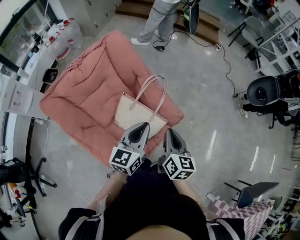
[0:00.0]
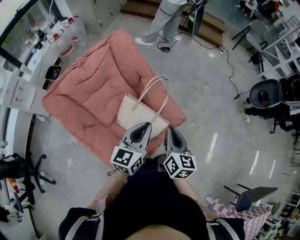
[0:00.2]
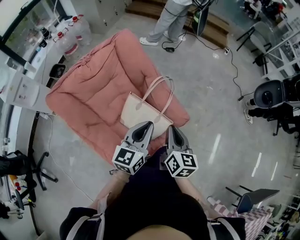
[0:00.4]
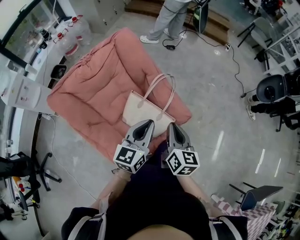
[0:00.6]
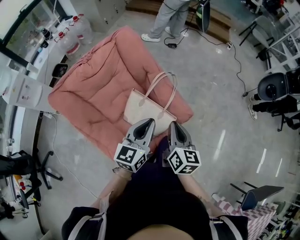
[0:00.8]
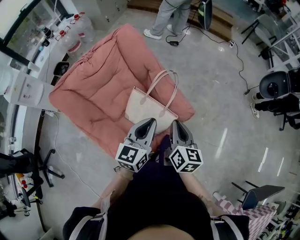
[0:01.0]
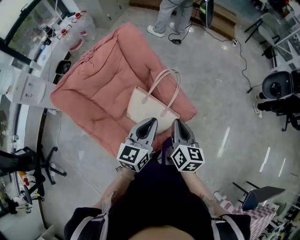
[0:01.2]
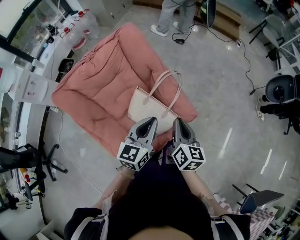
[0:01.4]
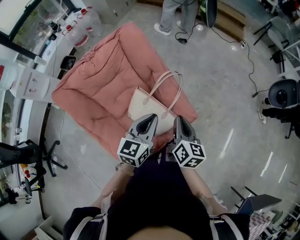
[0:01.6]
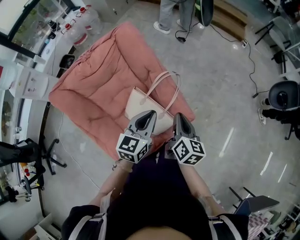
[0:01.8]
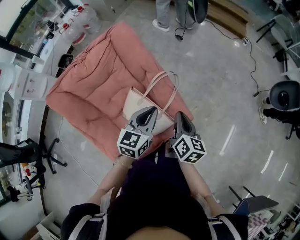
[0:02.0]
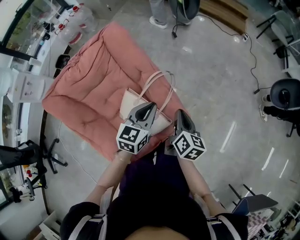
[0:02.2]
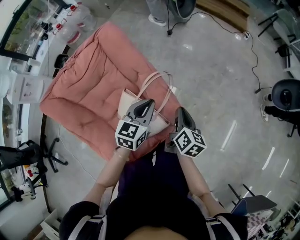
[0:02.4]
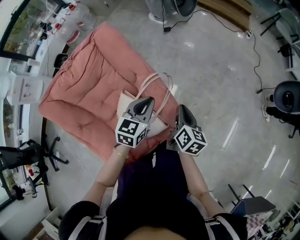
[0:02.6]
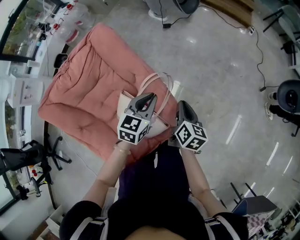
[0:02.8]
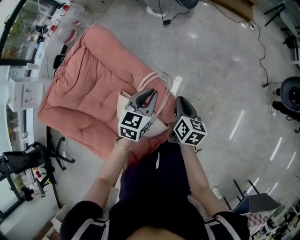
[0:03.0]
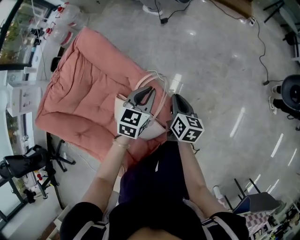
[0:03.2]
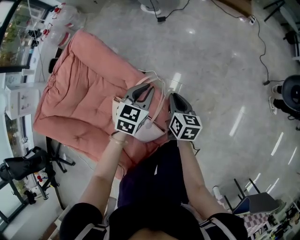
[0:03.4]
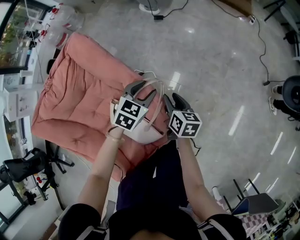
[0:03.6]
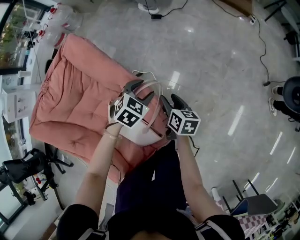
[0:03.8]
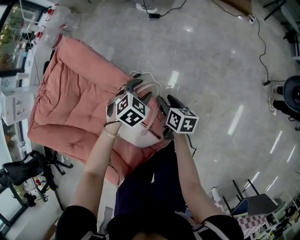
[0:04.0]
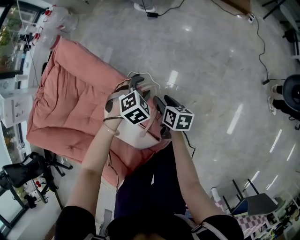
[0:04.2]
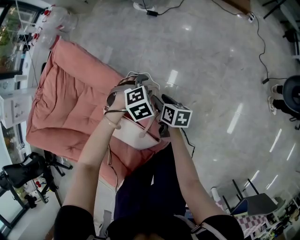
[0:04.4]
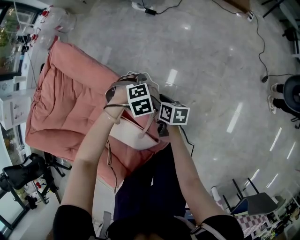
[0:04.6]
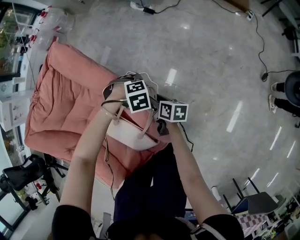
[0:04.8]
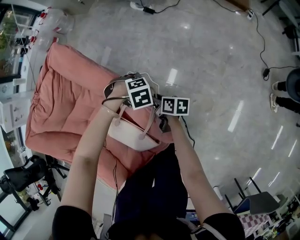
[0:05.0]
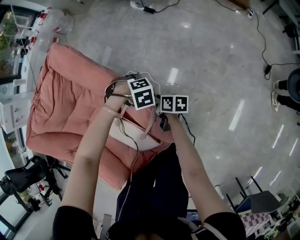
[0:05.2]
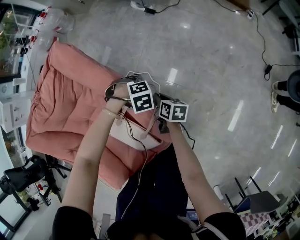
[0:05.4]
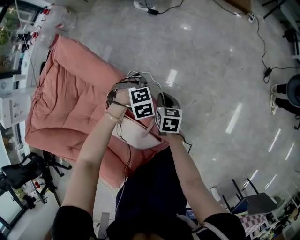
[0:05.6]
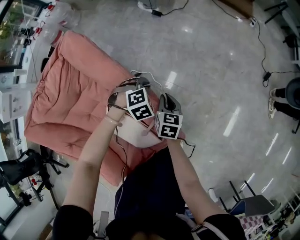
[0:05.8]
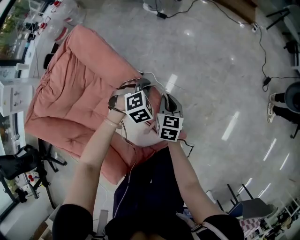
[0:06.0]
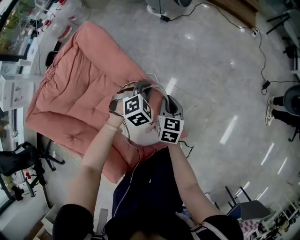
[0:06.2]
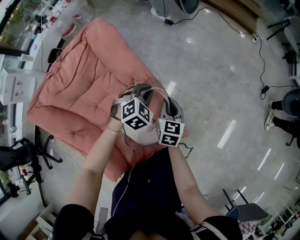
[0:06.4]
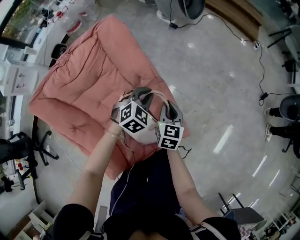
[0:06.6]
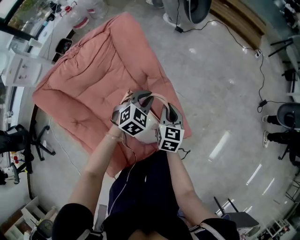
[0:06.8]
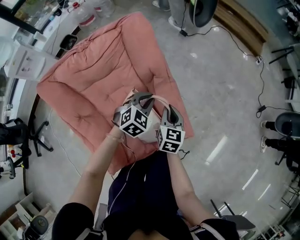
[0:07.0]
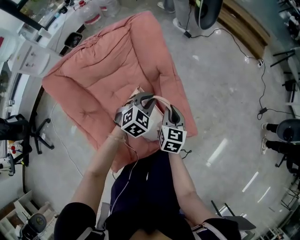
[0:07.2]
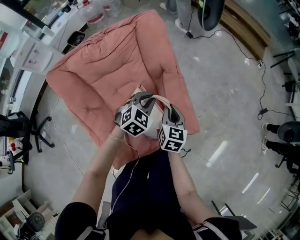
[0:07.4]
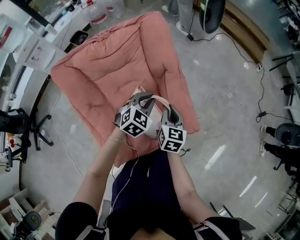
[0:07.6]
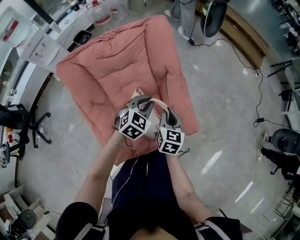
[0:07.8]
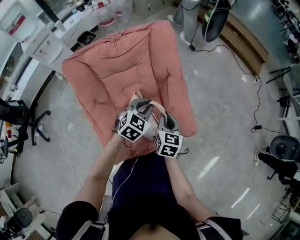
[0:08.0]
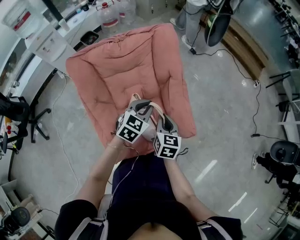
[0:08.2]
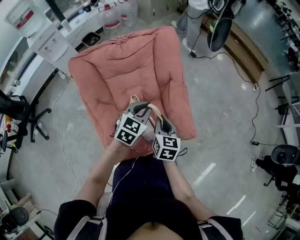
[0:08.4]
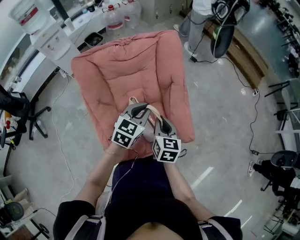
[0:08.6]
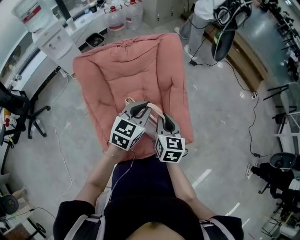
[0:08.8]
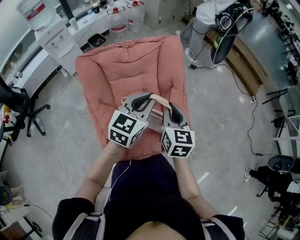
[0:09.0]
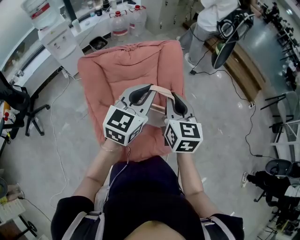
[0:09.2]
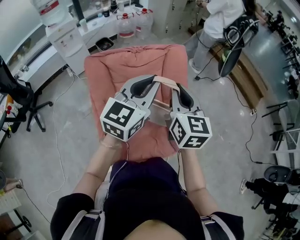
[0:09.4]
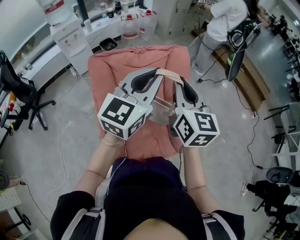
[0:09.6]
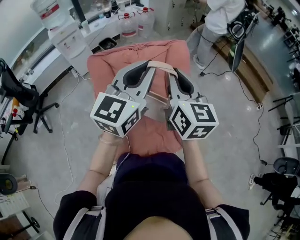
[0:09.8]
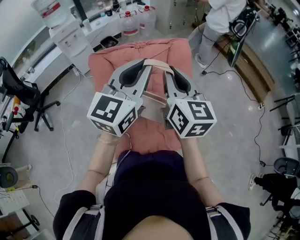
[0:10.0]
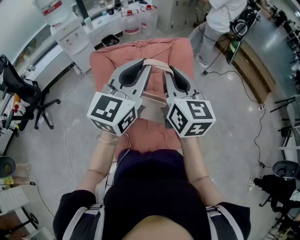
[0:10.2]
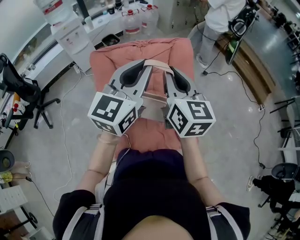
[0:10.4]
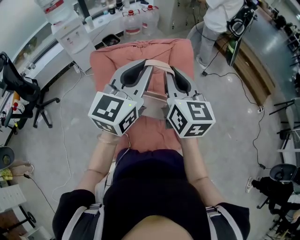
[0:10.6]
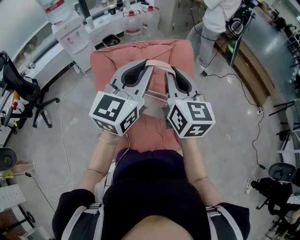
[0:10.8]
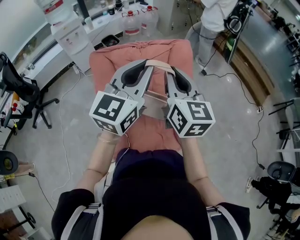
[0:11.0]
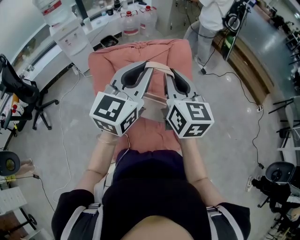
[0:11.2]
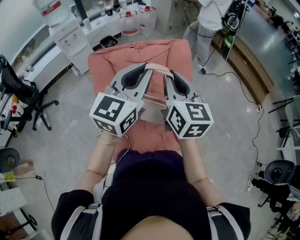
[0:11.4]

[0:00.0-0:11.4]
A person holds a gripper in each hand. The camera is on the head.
0.0 to 1.4 s: The right gripper shifts some 5 cm forward.
1.4 to 2.8 s: The right gripper is displaced forward, downward and to the right by approximately 25 cm. The left gripper is displaced forward and downward by approximately 25 cm.
2.8 to 4.2 s: The two grippers go approximately 20 cm downward and forward. The left gripper angles its fingers downward, by roughly 40 degrees, and opens, while the right gripper turns by approximately 20 degrees, and opens its fingers.
4.2 to 5.6 s: The right gripper changes its angle by roughly 20 degrees, and closes up; the left gripper moves roughly 5 cm, rotates approximately 20 degrees, and closes.
5.6 to 7.2 s: The left gripper changes place by about 25 cm, and angles its fingers upward, by about 40 degrees. The right gripper shifts by roughly 25 cm, and turns by some 20 degrees.
7.2 to 8.6 s: The left gripper moves upward, backward and to the left, roughly 20 cm, and turns by approximately 30 degrees. Meanwhile the right gripper shifts about 20 cm backward, upward and to the left.
8.6 to 10.0 s: Both grippers travel together upward, some 25 cm. The right gripper turns by roughly 30 degrees. Meanwhile the left gripper points its fingers about 30 degrees further upward.
10.0 to 11.4 s: The grippers move only a little.

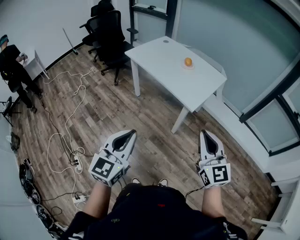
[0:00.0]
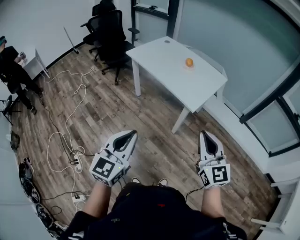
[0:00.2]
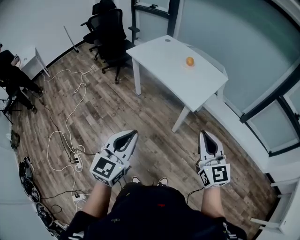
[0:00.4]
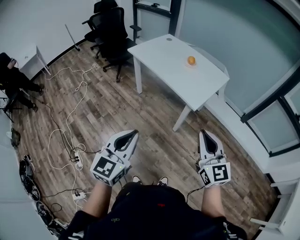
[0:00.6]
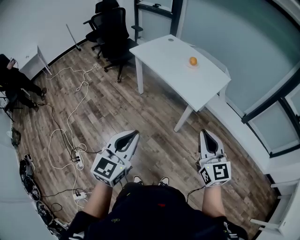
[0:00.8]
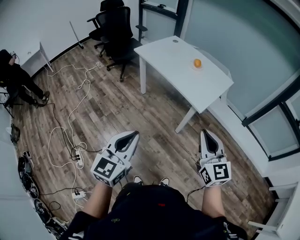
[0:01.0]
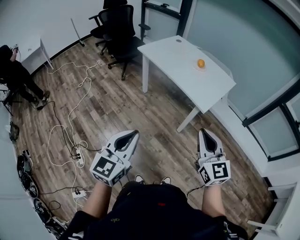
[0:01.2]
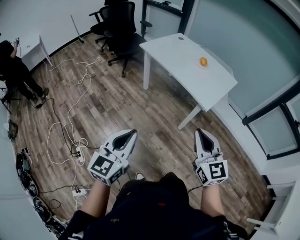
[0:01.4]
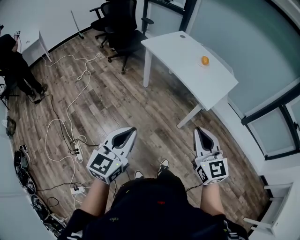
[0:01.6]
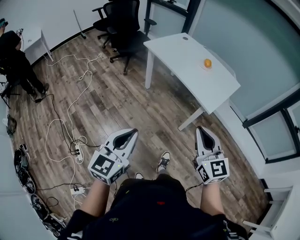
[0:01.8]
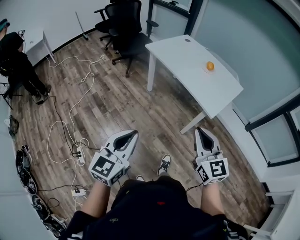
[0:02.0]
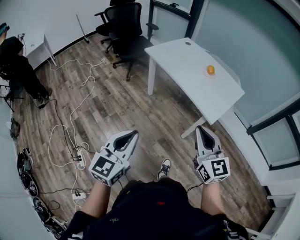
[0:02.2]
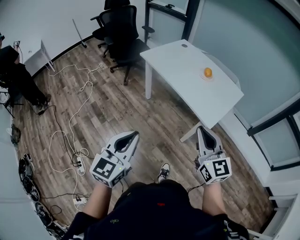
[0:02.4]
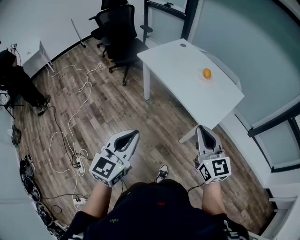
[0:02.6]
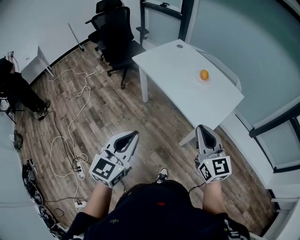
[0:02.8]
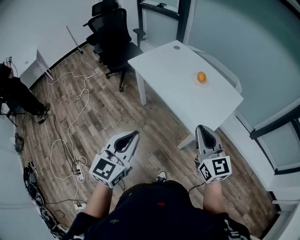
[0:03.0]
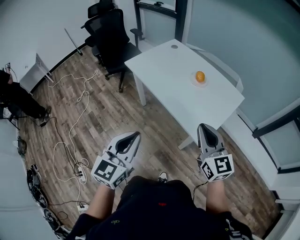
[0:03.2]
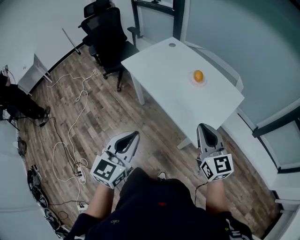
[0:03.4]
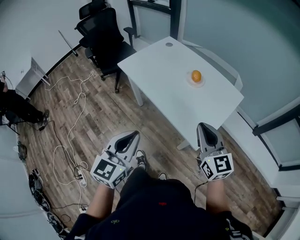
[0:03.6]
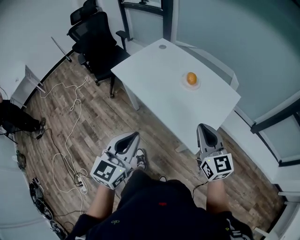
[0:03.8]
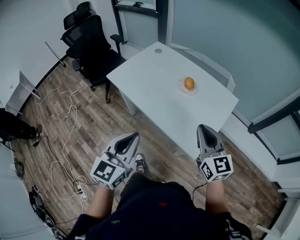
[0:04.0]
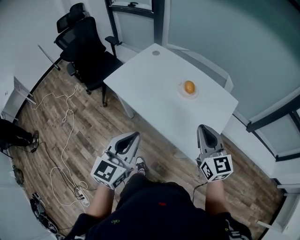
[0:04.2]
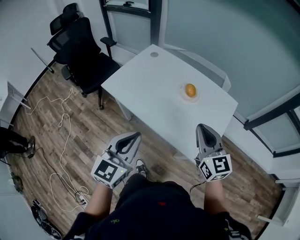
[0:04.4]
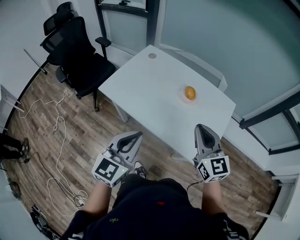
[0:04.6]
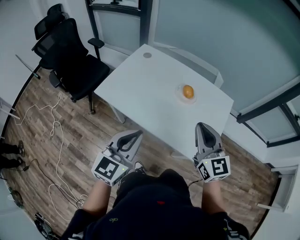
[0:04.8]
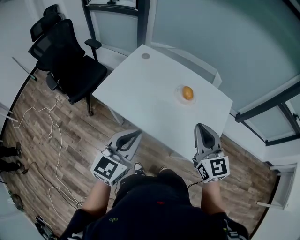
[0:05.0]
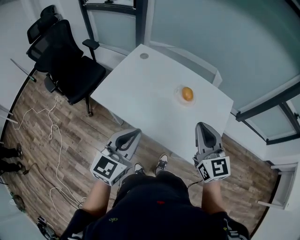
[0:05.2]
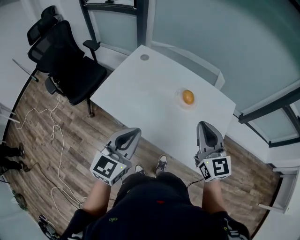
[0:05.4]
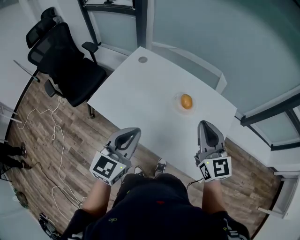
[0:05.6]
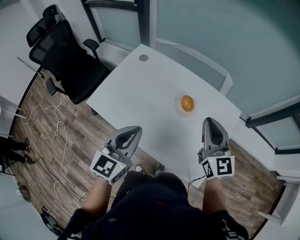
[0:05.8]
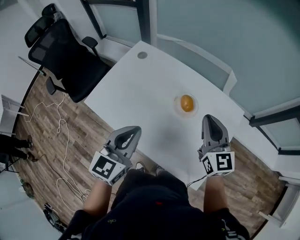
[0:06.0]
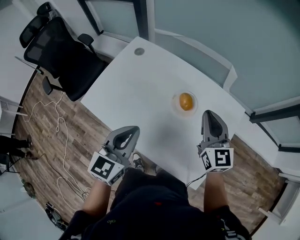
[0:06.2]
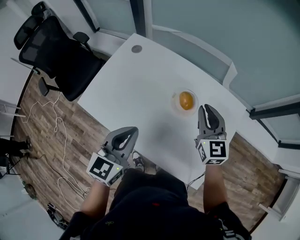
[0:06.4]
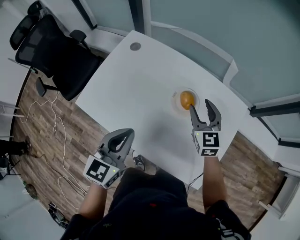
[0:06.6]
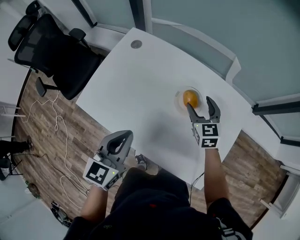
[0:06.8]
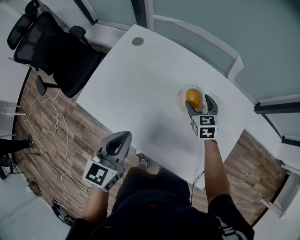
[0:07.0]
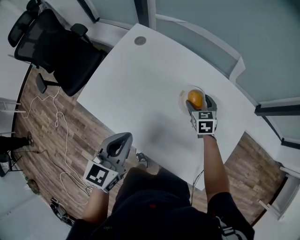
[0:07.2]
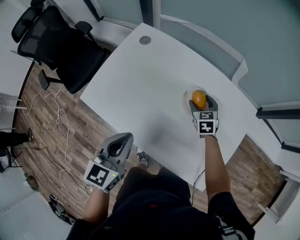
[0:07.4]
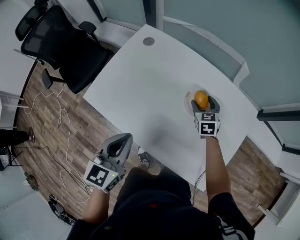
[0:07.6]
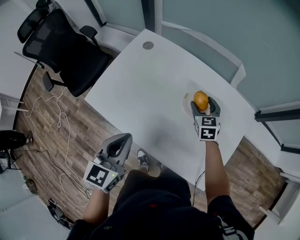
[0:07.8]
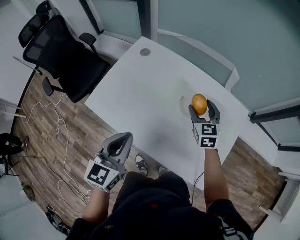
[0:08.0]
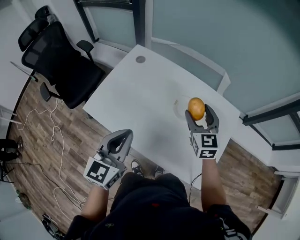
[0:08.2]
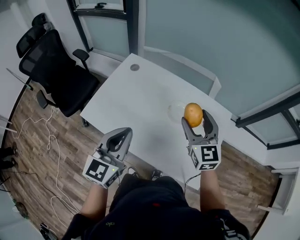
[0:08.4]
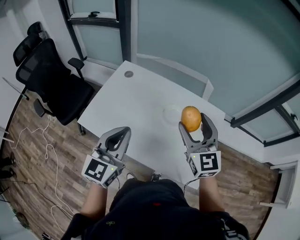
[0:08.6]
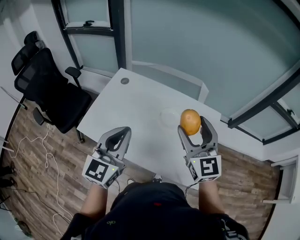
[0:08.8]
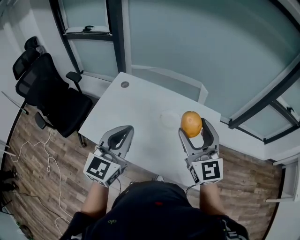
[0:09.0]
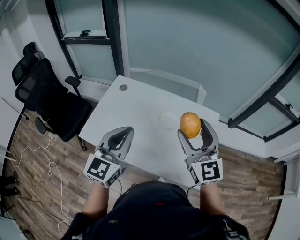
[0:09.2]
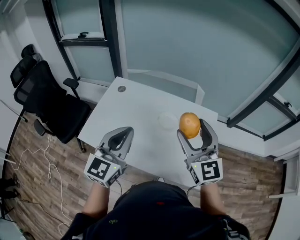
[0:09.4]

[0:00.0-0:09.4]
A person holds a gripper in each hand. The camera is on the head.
0.0 to 1.6 s: The grippers both shift to the left by some 15 cm.
1.6 to 3.2 s: The two grippers go roughly 35 cm forward and to the right.
3.2 to 4.8 s: The right gripper shifts some 25 cm forward and to the left. The left gripper is displaced forward by some 30 cm, and swivels about 20 degrees.
4.8 to 6.2 s: Both grippers move forward, some 25 cm.
6.2 to 7.8 s: The right gripper moves downward and forward, some 20 cm, swivels about 30 degrees, and opens, while the left gripper heads to the left, covering approximately 10 cm.
7.8 to 9.4 s: The right gripper is displaced upward and backward by some 40 cm, and tips its fingers upward by some 40 degrees; the left gripper goes roughly 15 cm upward, and changes its angle by some 30 degrees.

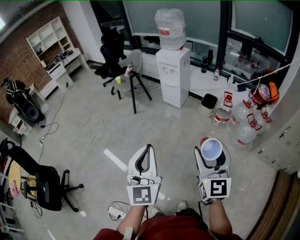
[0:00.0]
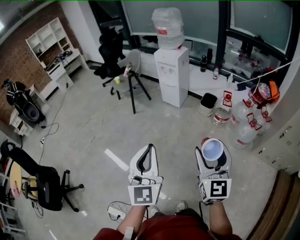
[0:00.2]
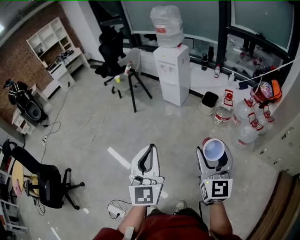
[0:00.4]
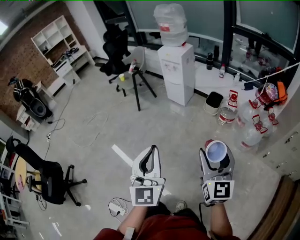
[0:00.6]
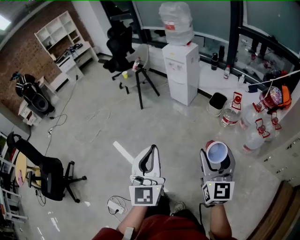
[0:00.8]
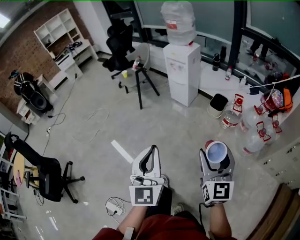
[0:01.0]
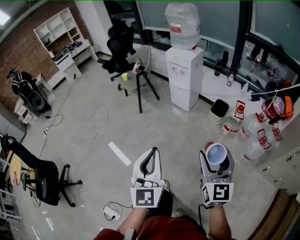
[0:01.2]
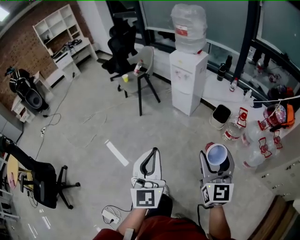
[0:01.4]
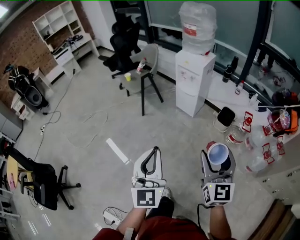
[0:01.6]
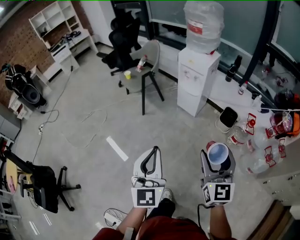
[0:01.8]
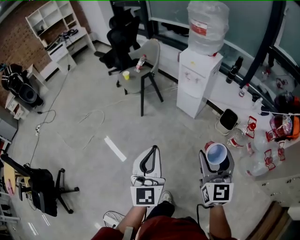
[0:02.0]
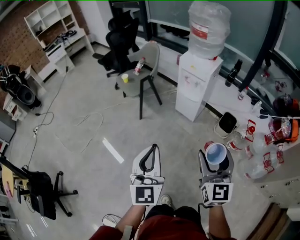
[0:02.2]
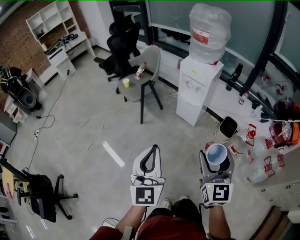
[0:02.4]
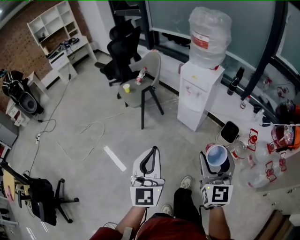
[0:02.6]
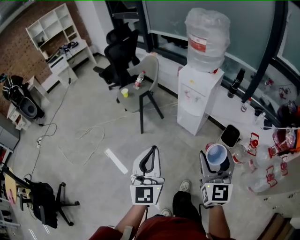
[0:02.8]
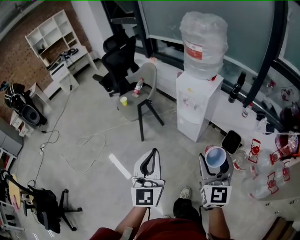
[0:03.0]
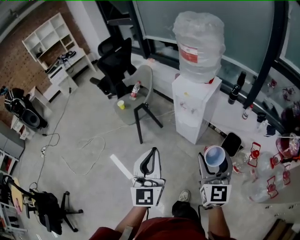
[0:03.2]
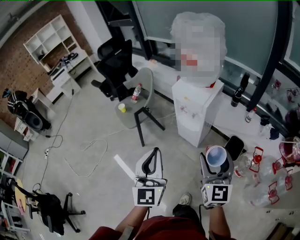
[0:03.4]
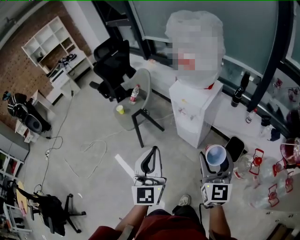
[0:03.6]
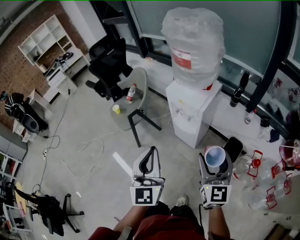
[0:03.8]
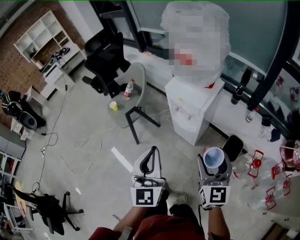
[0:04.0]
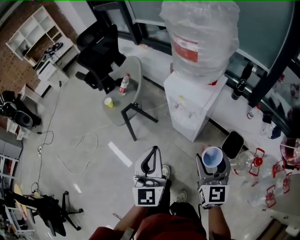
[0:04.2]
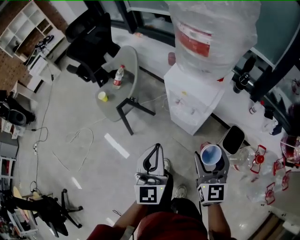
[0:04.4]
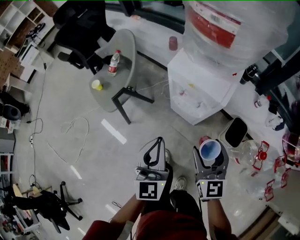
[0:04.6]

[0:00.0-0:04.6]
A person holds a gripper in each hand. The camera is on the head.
0.0 to 1.6 s: The two grippers go some 25 cm forward.
1.6 to 3.0 s: Both grippers move forward, approximately 30 cm.
3.0 to 4.6 s: Both grippers move forward and downward, some 35 cm.
